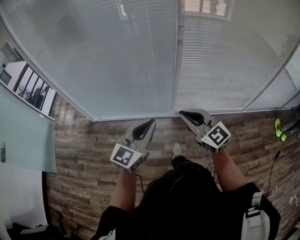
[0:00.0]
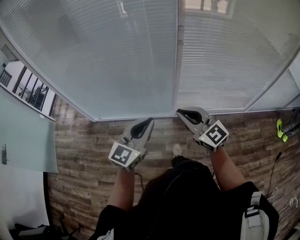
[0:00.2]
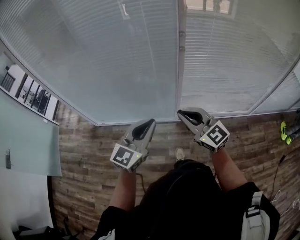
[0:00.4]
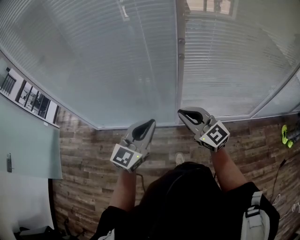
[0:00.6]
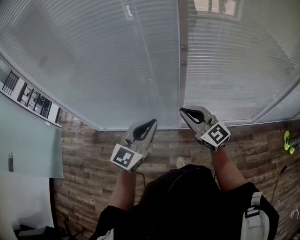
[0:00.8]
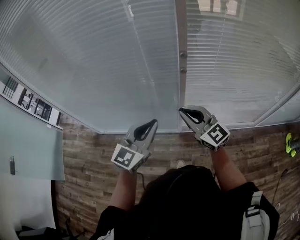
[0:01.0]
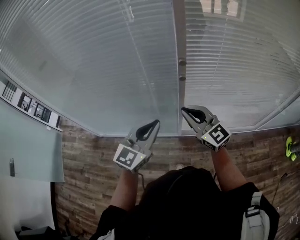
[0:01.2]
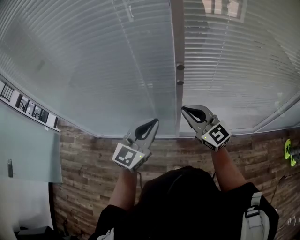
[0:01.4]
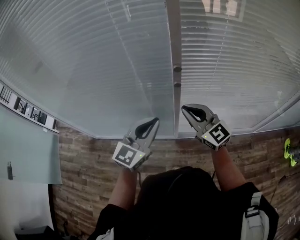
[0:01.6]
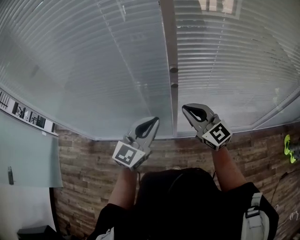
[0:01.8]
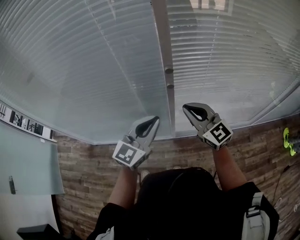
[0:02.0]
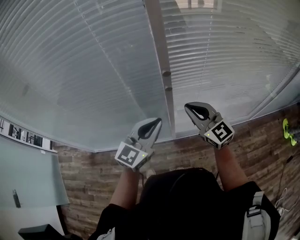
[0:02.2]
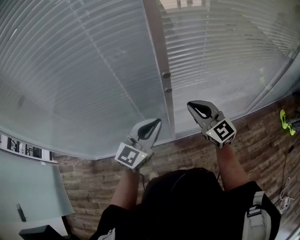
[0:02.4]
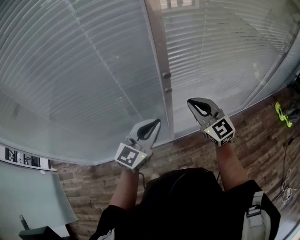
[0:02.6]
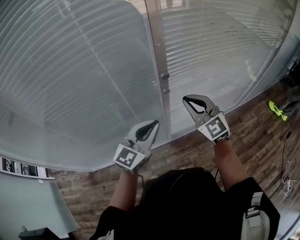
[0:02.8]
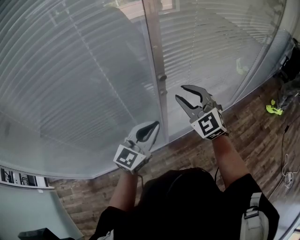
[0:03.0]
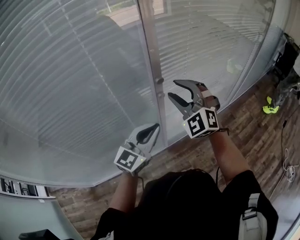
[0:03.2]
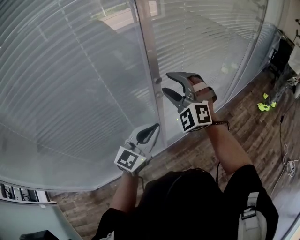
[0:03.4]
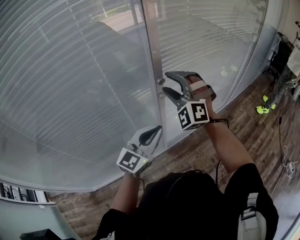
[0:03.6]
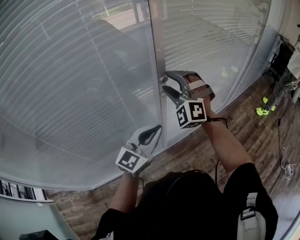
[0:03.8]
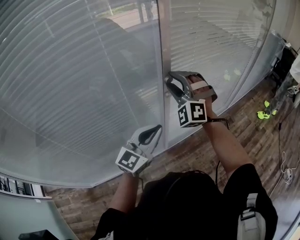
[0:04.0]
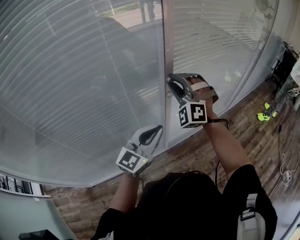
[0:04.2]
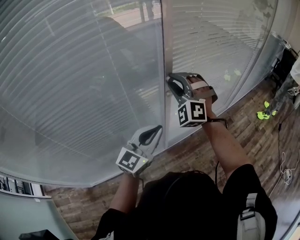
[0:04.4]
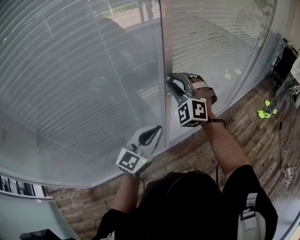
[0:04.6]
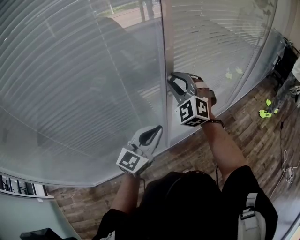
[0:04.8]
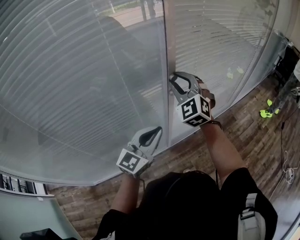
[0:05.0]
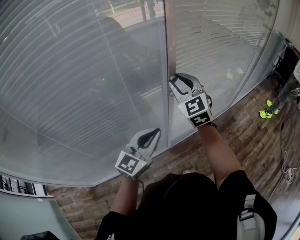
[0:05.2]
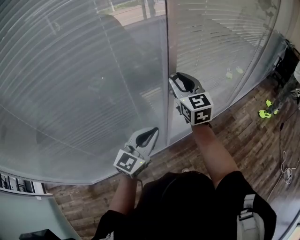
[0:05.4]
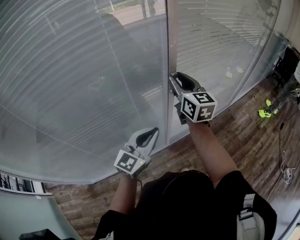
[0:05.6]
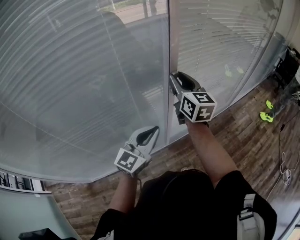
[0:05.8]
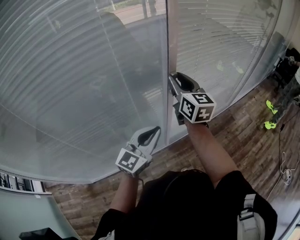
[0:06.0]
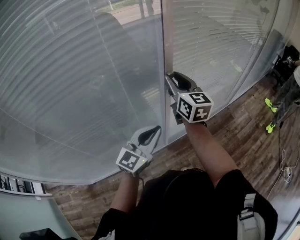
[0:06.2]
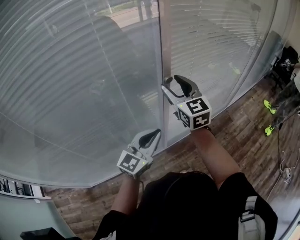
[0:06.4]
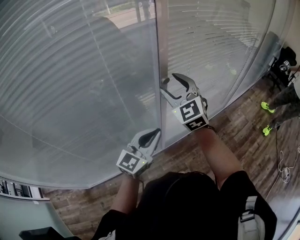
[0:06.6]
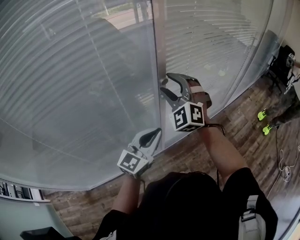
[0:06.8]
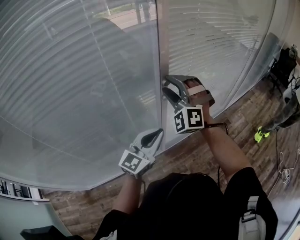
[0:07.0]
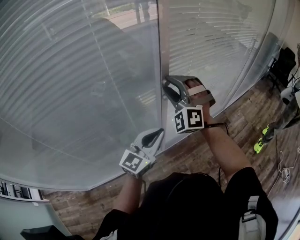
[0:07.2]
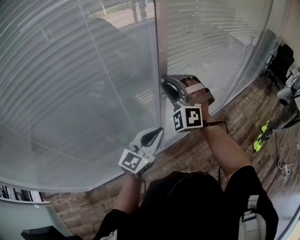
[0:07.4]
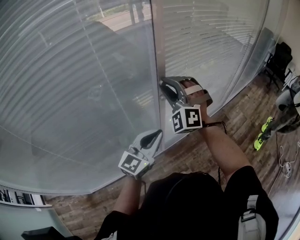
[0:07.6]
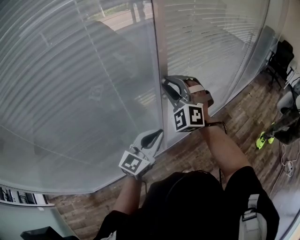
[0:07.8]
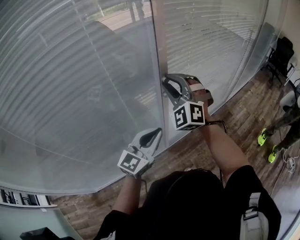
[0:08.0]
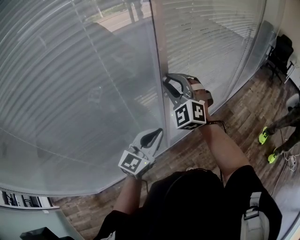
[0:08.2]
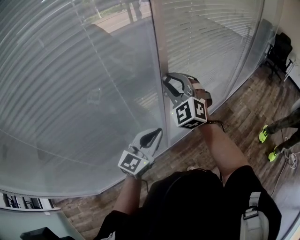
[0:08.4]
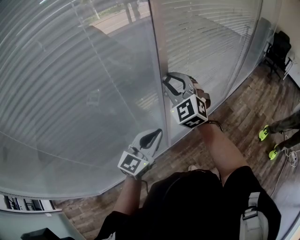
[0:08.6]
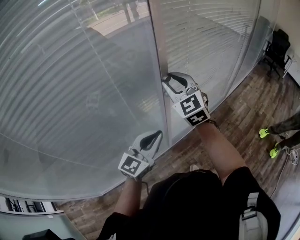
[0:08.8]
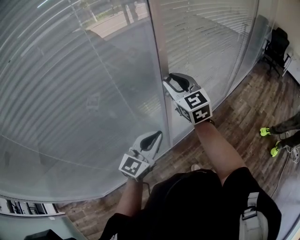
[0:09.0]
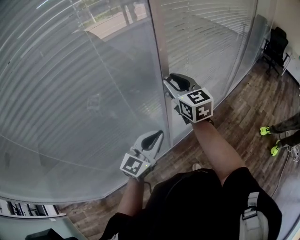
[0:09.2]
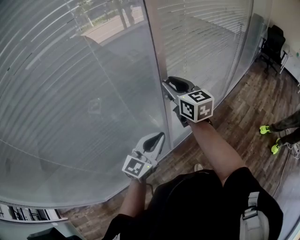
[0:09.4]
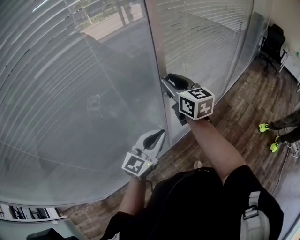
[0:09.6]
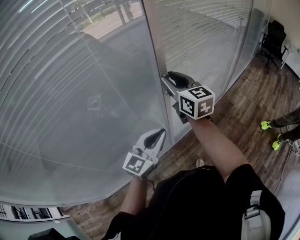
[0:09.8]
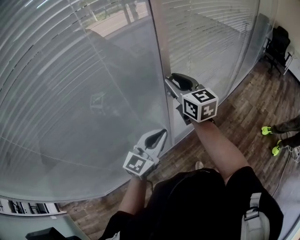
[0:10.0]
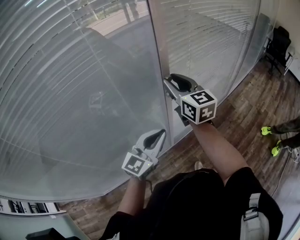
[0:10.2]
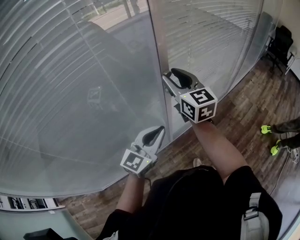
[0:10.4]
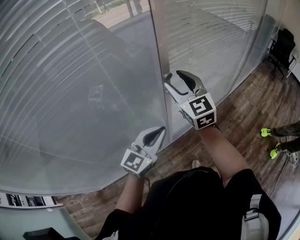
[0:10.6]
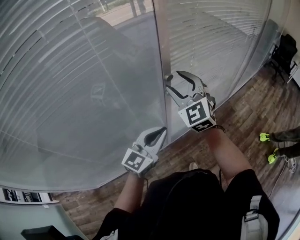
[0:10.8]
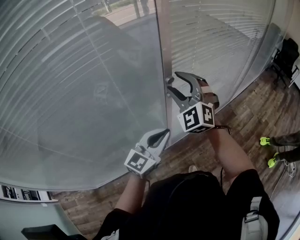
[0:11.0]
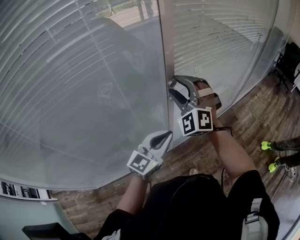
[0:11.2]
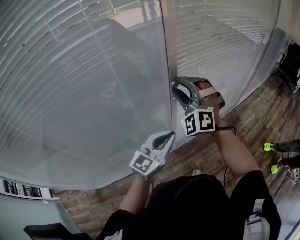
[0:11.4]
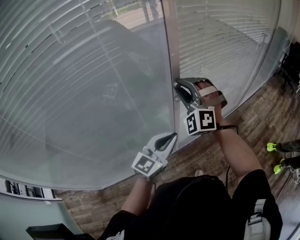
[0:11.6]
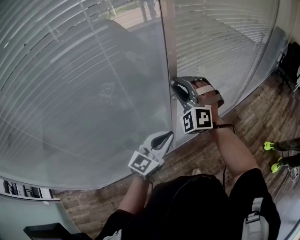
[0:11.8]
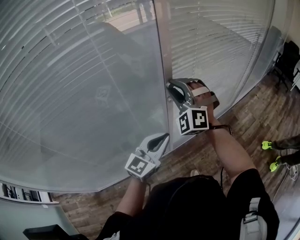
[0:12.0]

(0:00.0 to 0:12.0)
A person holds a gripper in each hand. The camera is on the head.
0:00.0 - 0:01.6: The left gripper moves forward and to the right, roughly 25 cm, while the right gripper goes about 25 cm forward.
0:01.6 - 0:03.0: The right gripper shifts by approximately 10 cm, changes its angle by roughly 50 degrees, and opens its fingers. The left gripper changes place by roughly 5 cm, and rotates roughly 30 degrees.
0:03.0 - 0:04.4: The right gripper heads to the left, covering approximately 5 cm, rotates about 40 degrees, and opens and closes again.
0:04.4 - 0:06.0: The right gripper rolls clockwise, seen from behind, by about 80 degrees.
0:06.0 - 0:07.6: The right gripper rotates around the line of its fingers by some 90 degrees, counterclockwise from behind, and opens and closes again.
0:07.6 - 0:09.0: The right gripper rotates around the line of its fingers by some 60 degrees, clockwise from behind.
0:10.4 - 0:12.0: The right gripper rotates around the line of its fingers by some 70 degrees, counterclockwise from behind.

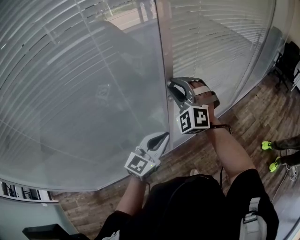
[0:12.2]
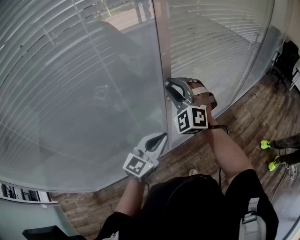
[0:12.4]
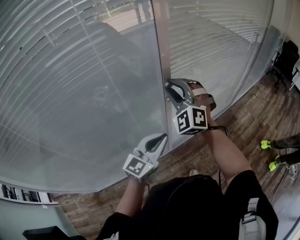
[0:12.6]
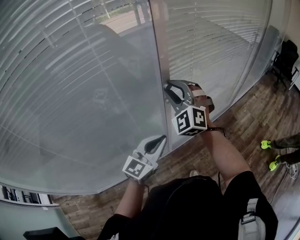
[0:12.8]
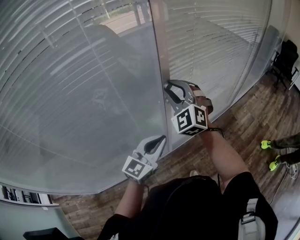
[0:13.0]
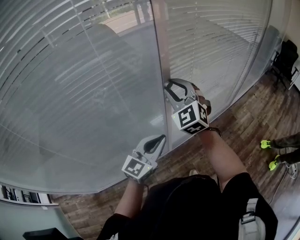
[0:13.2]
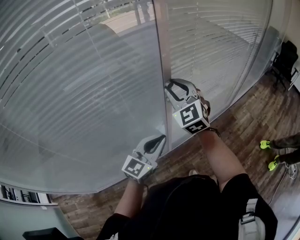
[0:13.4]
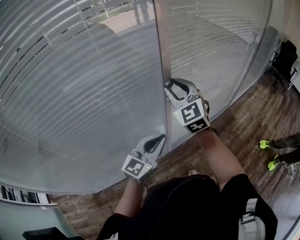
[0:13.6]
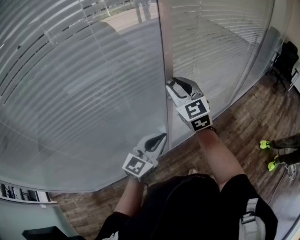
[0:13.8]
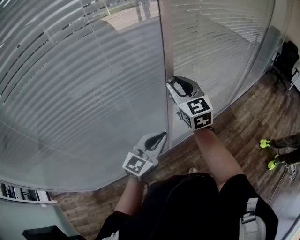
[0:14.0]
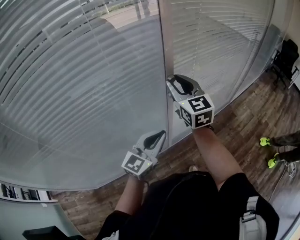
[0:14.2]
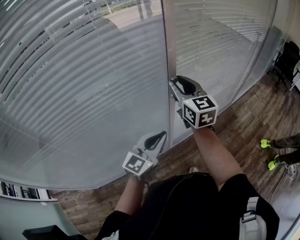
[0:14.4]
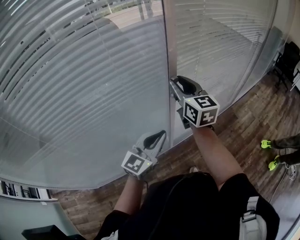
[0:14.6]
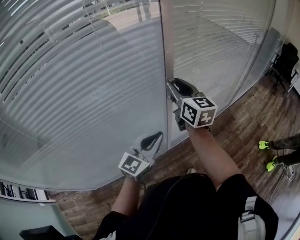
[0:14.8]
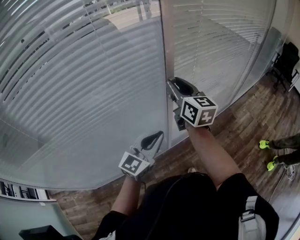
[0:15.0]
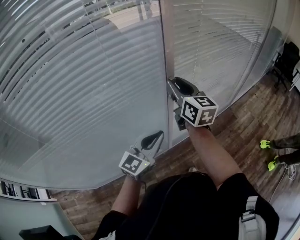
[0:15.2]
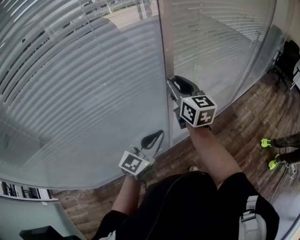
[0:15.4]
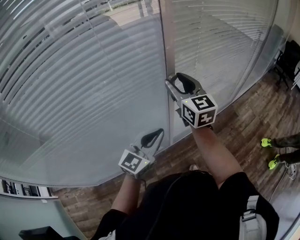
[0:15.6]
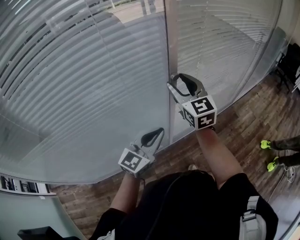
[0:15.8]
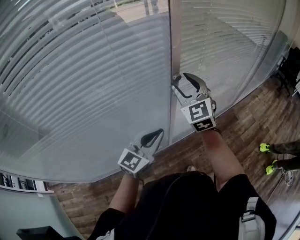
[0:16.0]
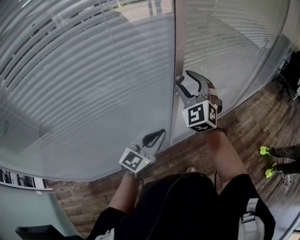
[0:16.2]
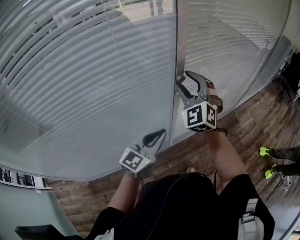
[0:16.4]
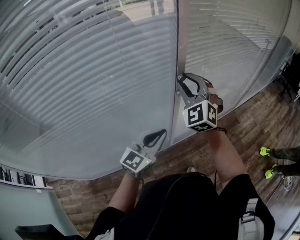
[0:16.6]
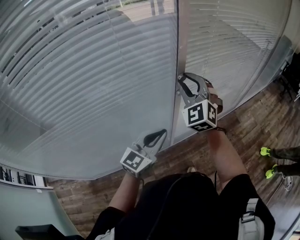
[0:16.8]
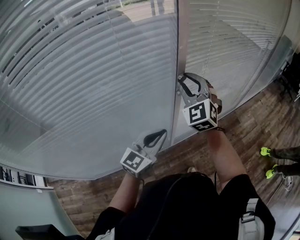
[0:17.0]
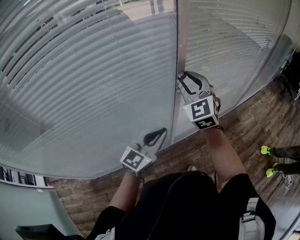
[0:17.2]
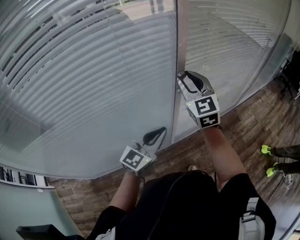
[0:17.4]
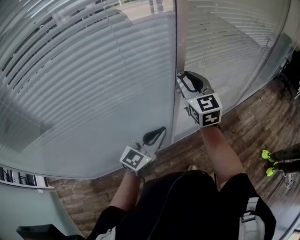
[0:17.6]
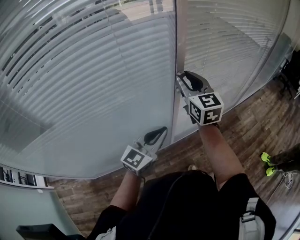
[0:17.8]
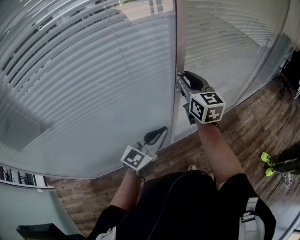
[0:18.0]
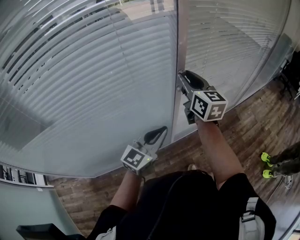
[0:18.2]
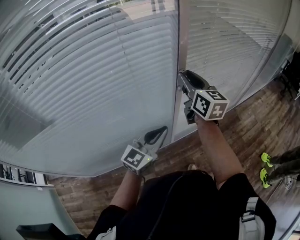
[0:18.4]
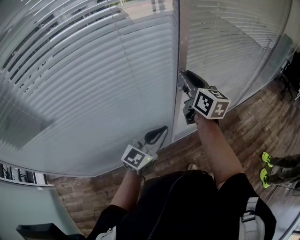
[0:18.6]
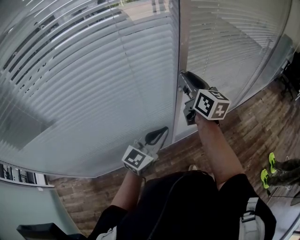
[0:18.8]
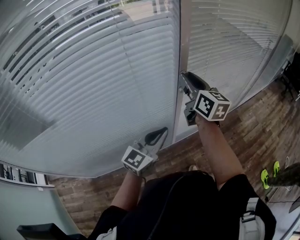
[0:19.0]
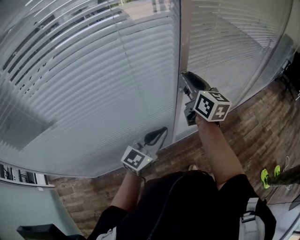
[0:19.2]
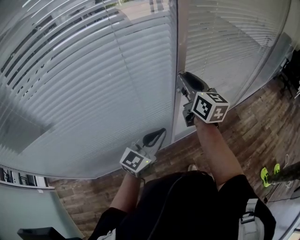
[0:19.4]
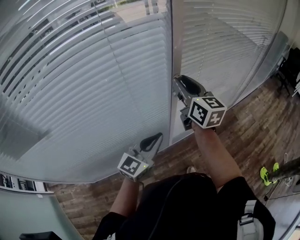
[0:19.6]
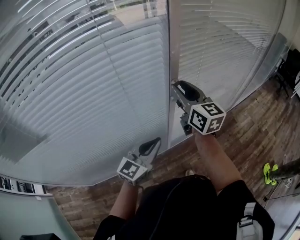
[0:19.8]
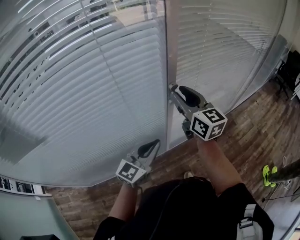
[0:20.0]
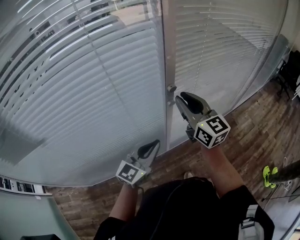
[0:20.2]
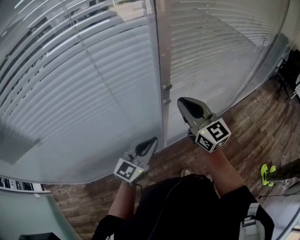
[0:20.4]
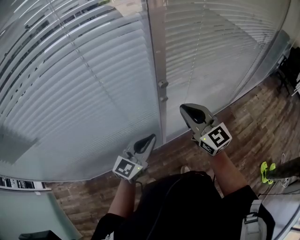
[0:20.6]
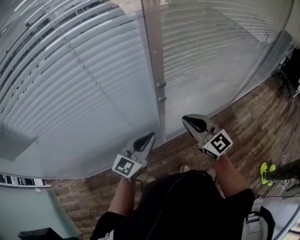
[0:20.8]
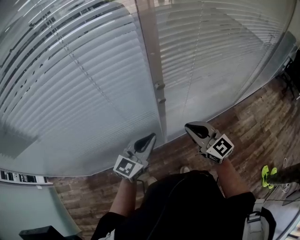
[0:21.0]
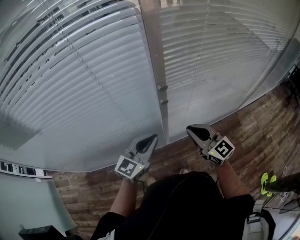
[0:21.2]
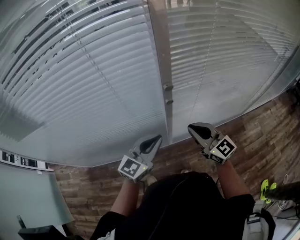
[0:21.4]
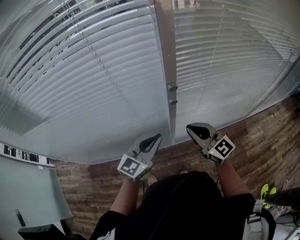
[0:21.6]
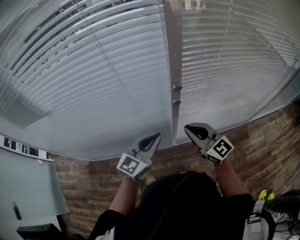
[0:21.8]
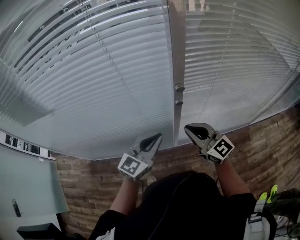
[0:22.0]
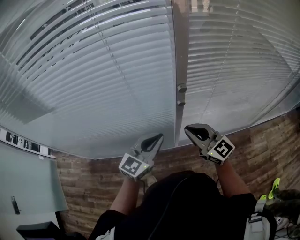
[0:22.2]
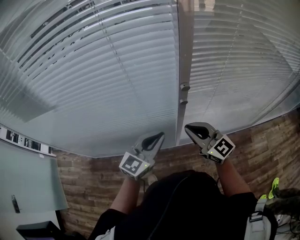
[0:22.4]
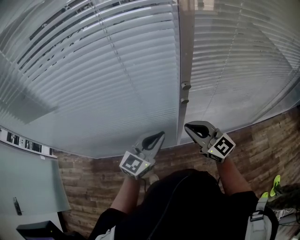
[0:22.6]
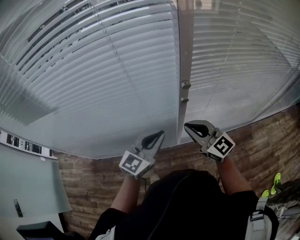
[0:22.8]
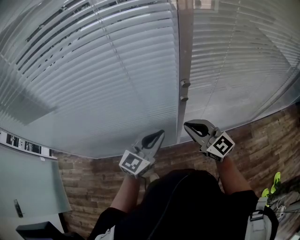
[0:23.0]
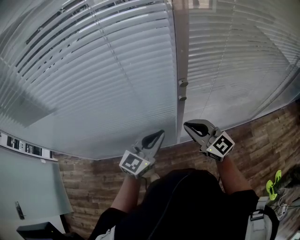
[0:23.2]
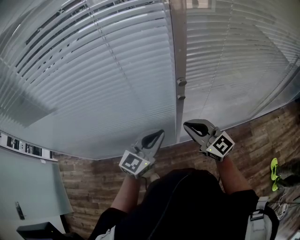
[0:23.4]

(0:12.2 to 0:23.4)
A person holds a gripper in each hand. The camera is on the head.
0:12.2 - 0:13.8: The right gripper rotates around the line of its fingers by some 50 degrees, clockwise from behind.
0:13.8 - 0:15.4: The right gripper swivels some 30 degrees.
0:15.4 - 0:17.0: The right gripper rolls counterclockwise, seen from behind, by some 60 degrees, and opens, then closes again.
0:17.0 - 0:18.6: The right gripper rotates around the line of its fingers by roughly 60 degrees, clockwise from behind.
0:18.6 - 0:20.2: There are only small adjustments of the grippers.
0:20.2 - 0:21.8: The right gripper heads downward and backward, covering roughly 15 cm, turns by roughly 30 degrees, and closes.
0:21.8 - 0:23.4: There are only small adjustments of the grippers.

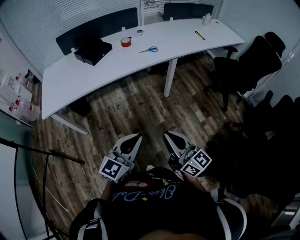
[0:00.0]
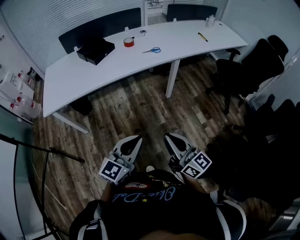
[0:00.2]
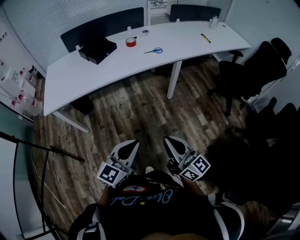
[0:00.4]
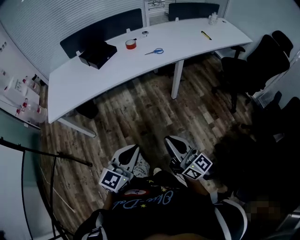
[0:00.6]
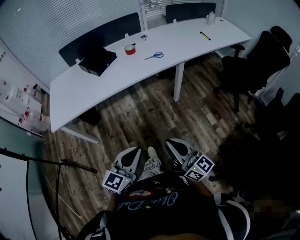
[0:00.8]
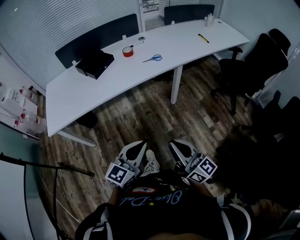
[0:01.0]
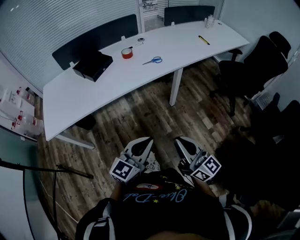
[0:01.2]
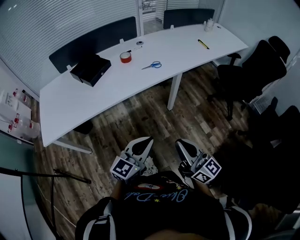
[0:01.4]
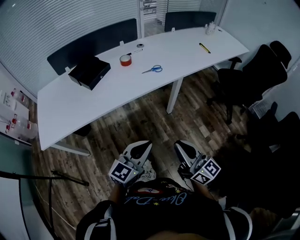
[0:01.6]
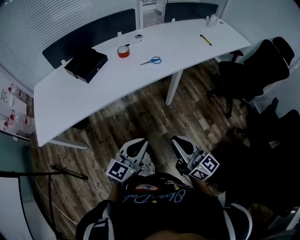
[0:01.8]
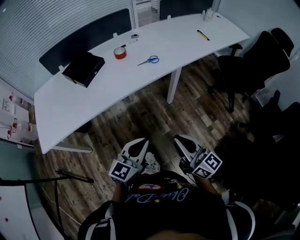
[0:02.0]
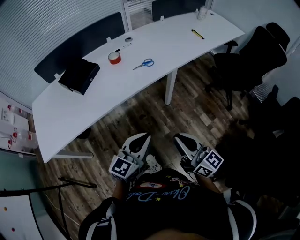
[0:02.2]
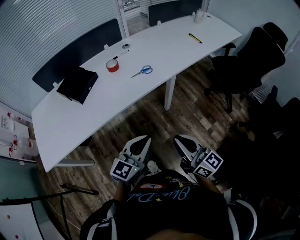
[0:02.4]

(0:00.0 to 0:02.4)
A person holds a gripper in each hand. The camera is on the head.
0:00.0 - 0:01.2: Both grippers move forward, roughly 10 cm.
0:01.2 - 0:02.4: Both grippers travel together forward, roughly 15 cm.
